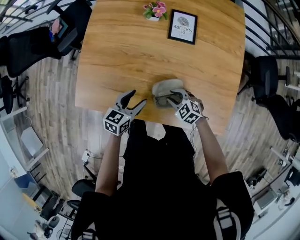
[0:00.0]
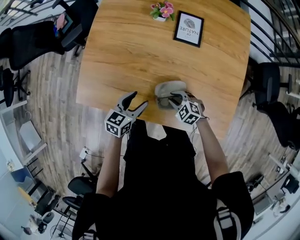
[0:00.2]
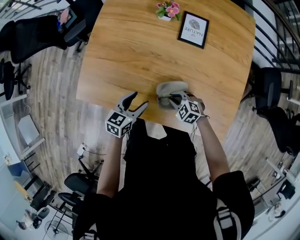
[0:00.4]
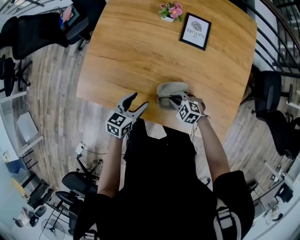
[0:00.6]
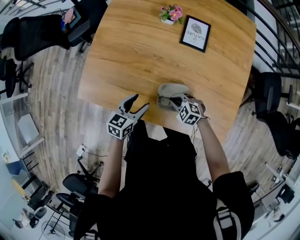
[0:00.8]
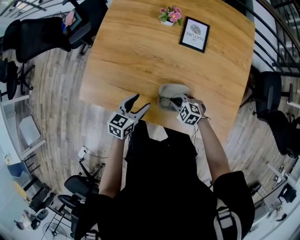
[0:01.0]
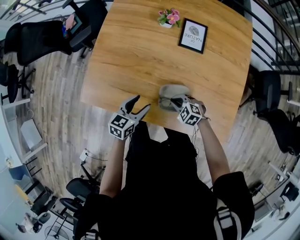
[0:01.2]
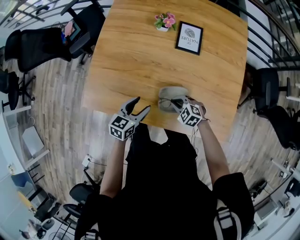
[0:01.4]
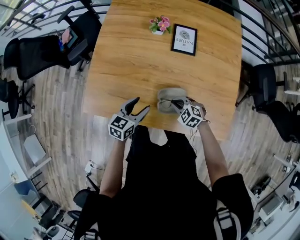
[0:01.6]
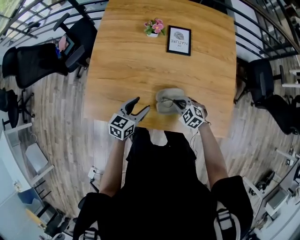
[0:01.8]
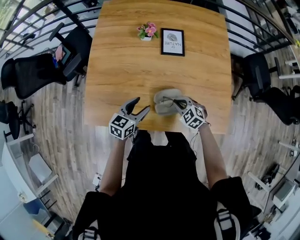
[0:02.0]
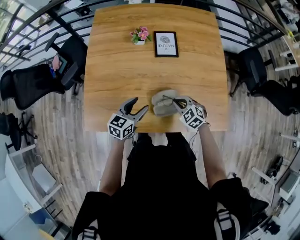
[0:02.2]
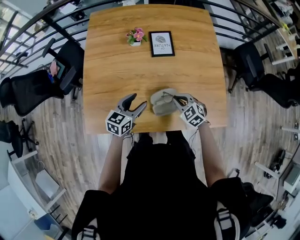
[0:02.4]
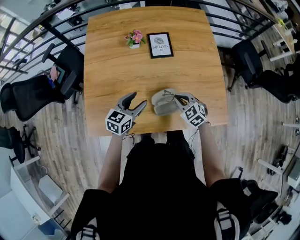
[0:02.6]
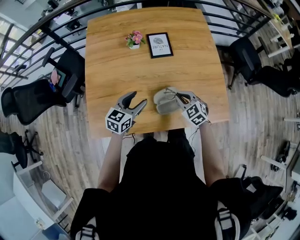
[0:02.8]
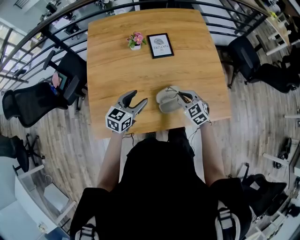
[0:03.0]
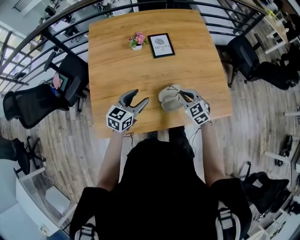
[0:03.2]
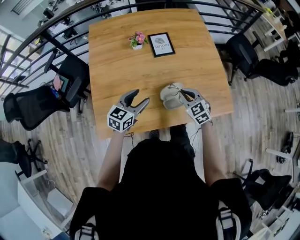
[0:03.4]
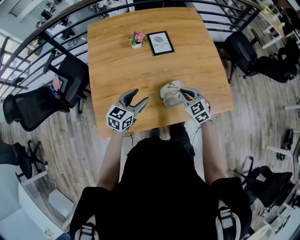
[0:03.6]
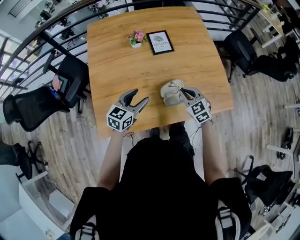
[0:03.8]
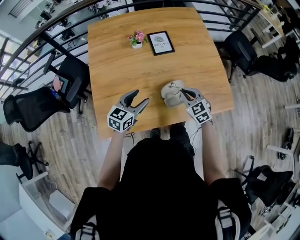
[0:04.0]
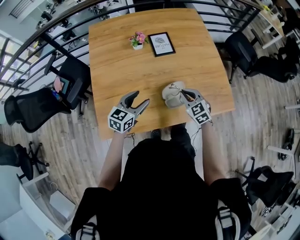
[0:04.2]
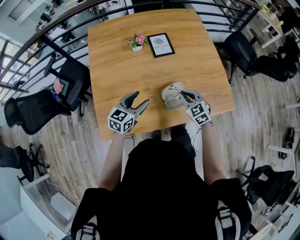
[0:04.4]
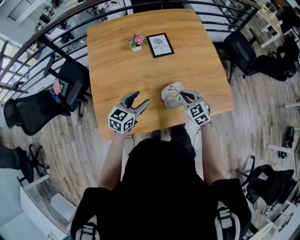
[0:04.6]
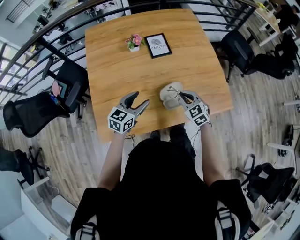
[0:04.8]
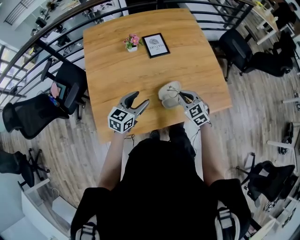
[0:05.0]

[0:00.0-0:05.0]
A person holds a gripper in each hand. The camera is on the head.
0.0 to 1.6 s: The right gripper closes.
1.6 to 3.4 s: The right gripper is displaced upward by approximately 15 cm, and turns by some 50 degrees. The left gripper is displaced upward by some 5 cm, and turns by about 30 degrees.
3.4 to 5.0 s: There are only small adjustments of the grippers.

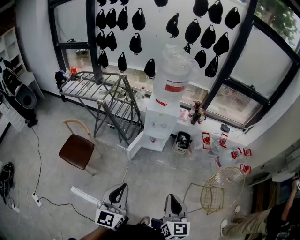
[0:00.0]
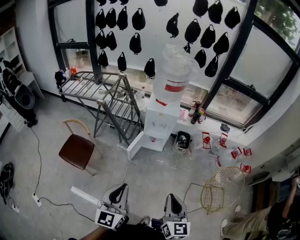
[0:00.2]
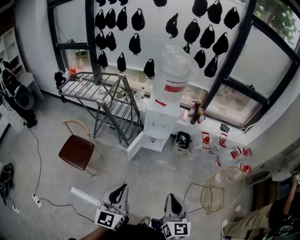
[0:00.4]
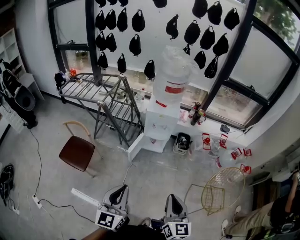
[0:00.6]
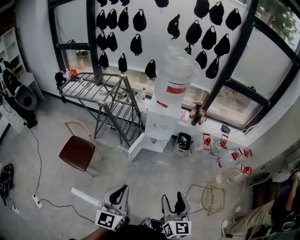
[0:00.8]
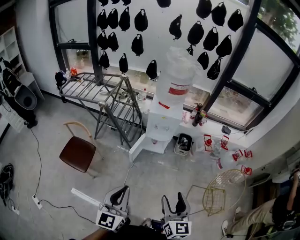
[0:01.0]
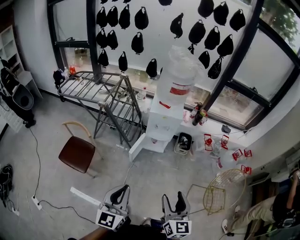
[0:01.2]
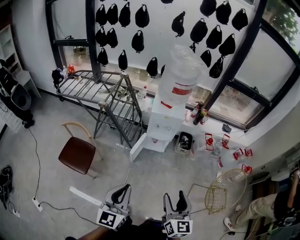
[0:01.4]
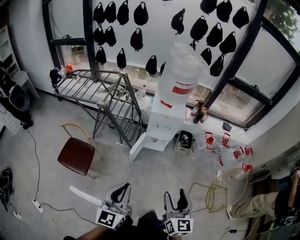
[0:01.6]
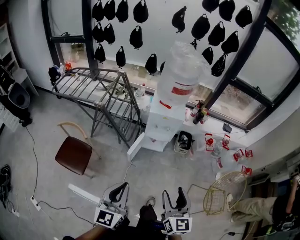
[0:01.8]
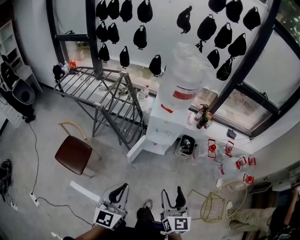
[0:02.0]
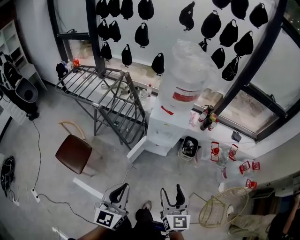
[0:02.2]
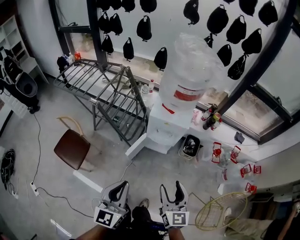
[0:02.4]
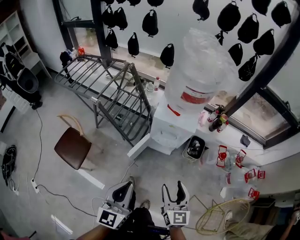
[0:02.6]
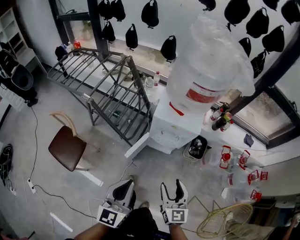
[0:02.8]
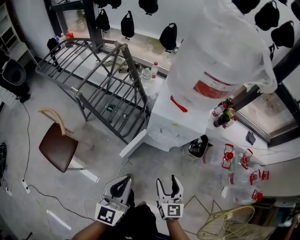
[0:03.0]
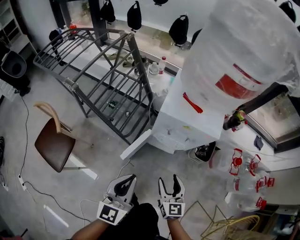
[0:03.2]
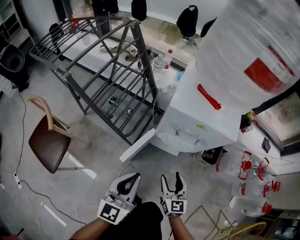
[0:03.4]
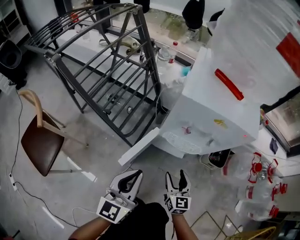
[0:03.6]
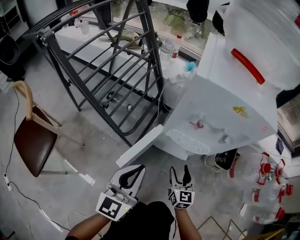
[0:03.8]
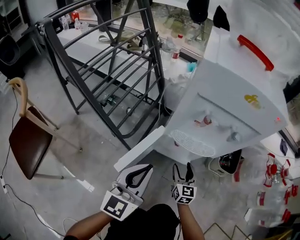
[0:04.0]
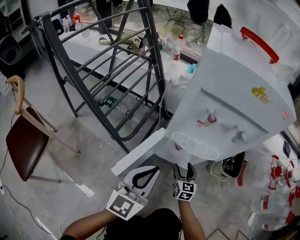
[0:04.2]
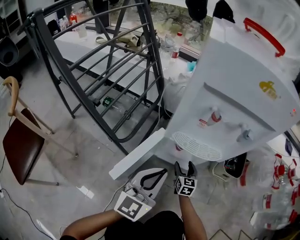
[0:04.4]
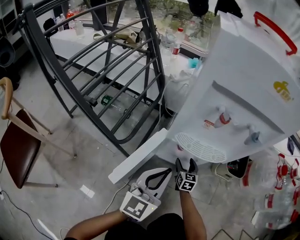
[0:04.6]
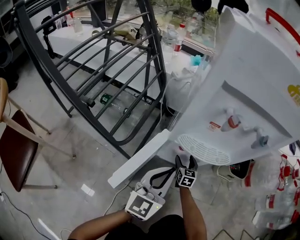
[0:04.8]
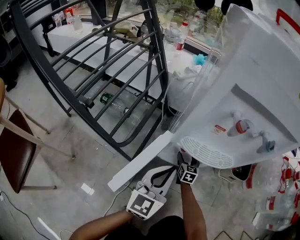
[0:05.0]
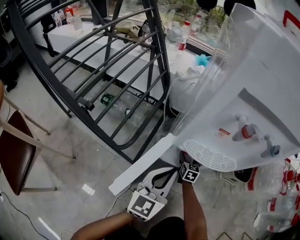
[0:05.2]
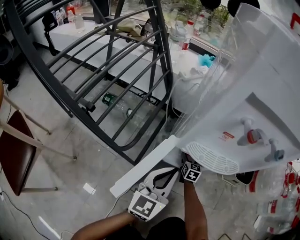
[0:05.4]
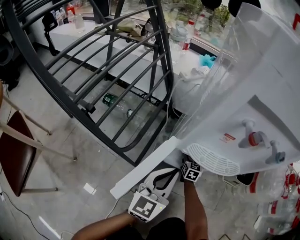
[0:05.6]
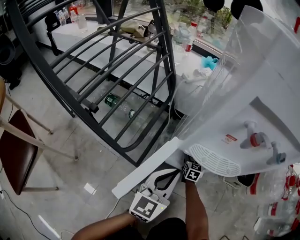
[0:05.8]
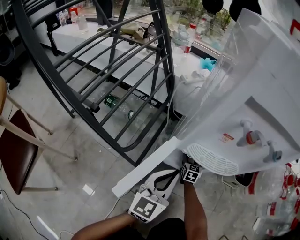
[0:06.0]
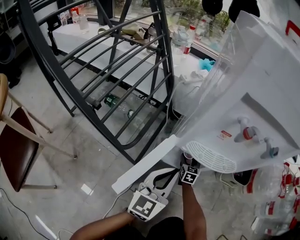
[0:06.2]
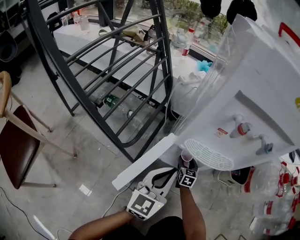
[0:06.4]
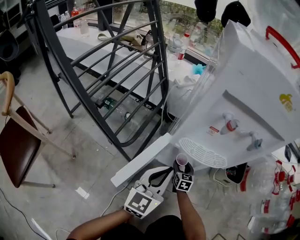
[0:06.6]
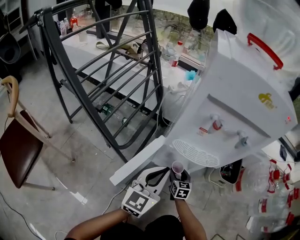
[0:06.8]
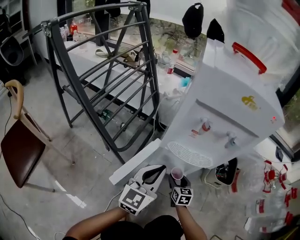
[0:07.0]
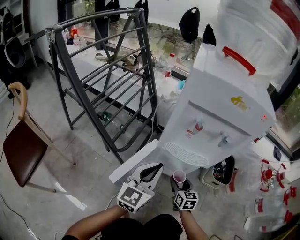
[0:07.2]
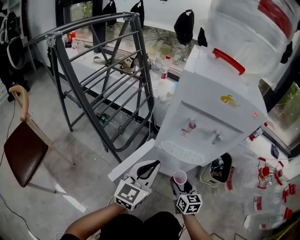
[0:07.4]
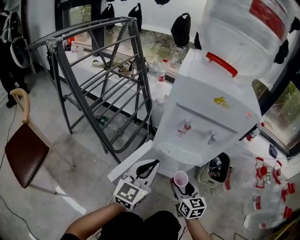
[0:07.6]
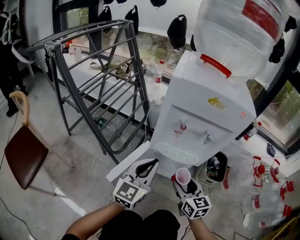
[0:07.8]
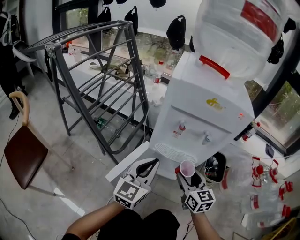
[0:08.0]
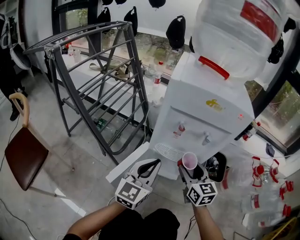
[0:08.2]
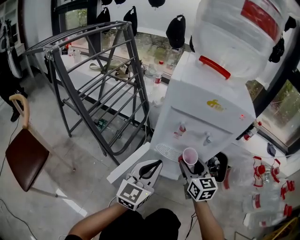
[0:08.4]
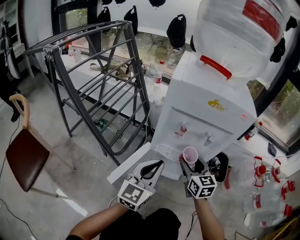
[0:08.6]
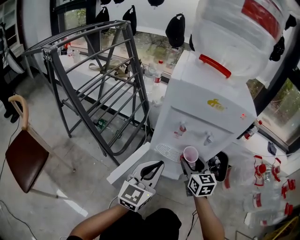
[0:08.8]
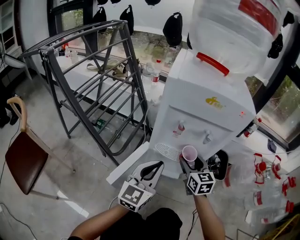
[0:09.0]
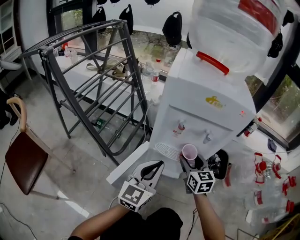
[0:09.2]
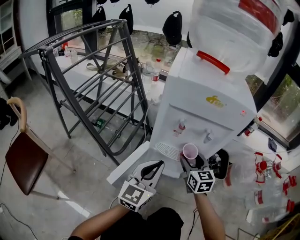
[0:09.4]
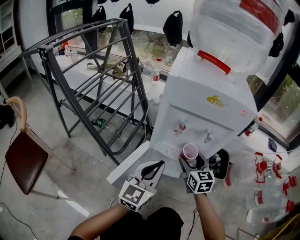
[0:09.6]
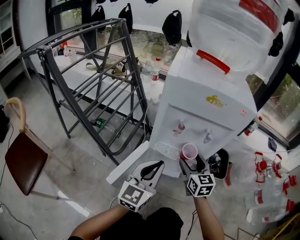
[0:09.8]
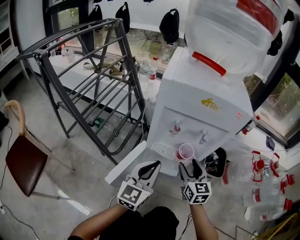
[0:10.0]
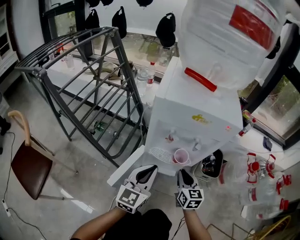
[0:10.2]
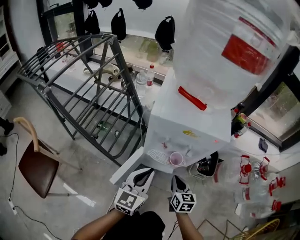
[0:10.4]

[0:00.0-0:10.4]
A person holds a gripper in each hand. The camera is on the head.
0.0 to 1.4 s: The left gripper goes some 5 cm to the left. The right gripper moves to the left and forward, approximately 10 cm, and opens its fingers.
1.4 to 3.0 s: Both grippers travel together forward and downward, some 40 cm.
3.0 to 4.4 s: The right gripper moves downward and forward, roughly 70 cm, while the left gripper travels downward by roughly 40 cm.
4.4 to 6.0 s: The left gripper shifts approximately 10 cm downward and forward; the right gripper heads forward and downward, covering about 15 cm.
6.0 to 7.4 s: The right gripper is displaced upward and backward by about 30 cm. The left gripper moves upward, approximately 15 cm.
7.4 to 9.0 s: The right gripper shifts about 15 cm upward and forward.
9.0 to 10.4 s: The left gripper heads upward, covering approximately 10 cm. The right gripper heads backward, covering some 10 cm, and closes its fingers.

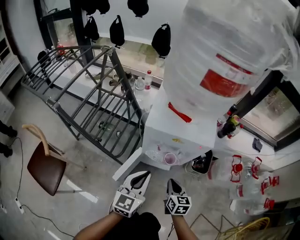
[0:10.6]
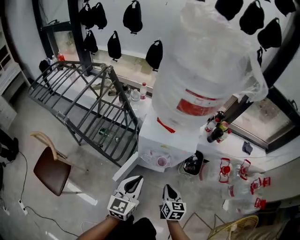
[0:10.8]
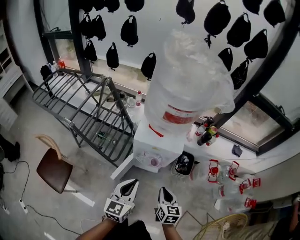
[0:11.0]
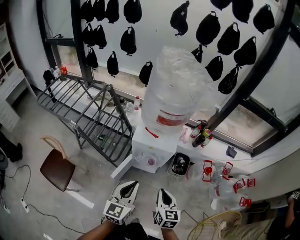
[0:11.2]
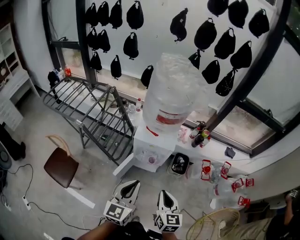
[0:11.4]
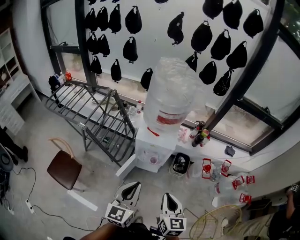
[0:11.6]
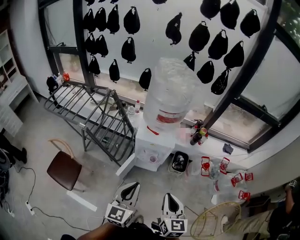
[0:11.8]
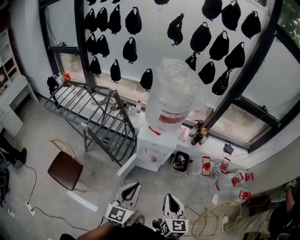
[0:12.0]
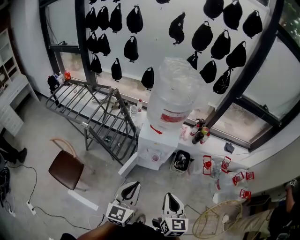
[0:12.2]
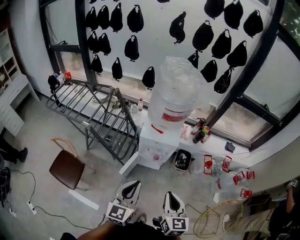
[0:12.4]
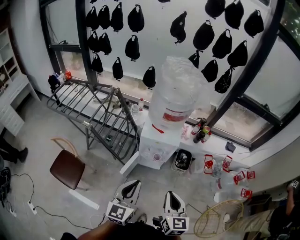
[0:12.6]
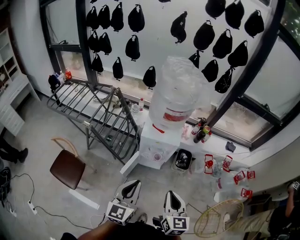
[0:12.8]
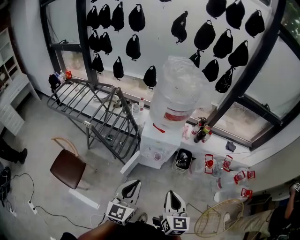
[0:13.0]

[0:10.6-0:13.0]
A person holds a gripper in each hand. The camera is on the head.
10.6 to 11.8 s: Both grippers move upward and backward, approximately 50 cm.
11.8 to 13.0 s: The grippers move only a little.

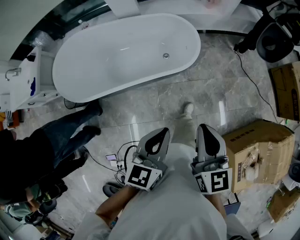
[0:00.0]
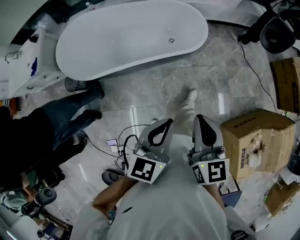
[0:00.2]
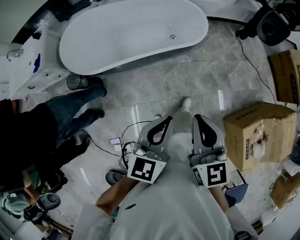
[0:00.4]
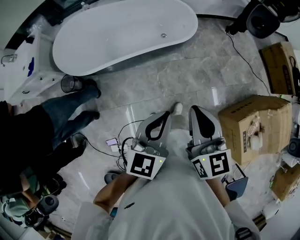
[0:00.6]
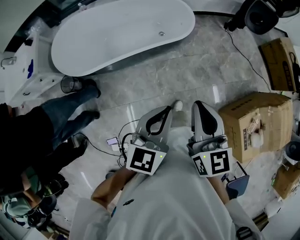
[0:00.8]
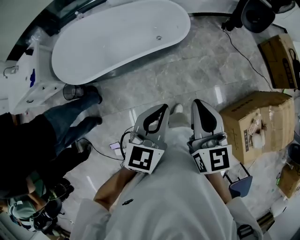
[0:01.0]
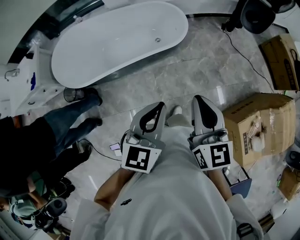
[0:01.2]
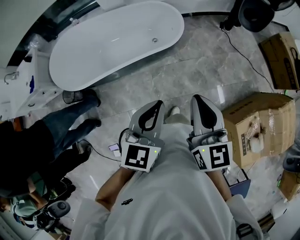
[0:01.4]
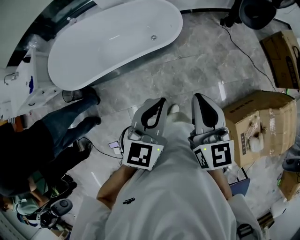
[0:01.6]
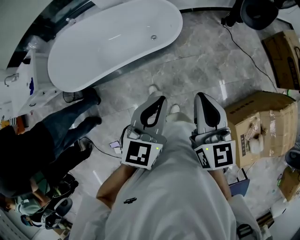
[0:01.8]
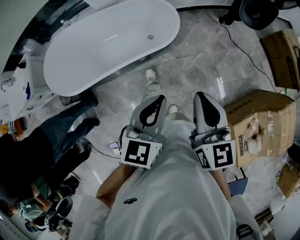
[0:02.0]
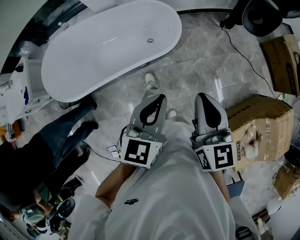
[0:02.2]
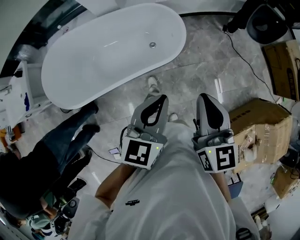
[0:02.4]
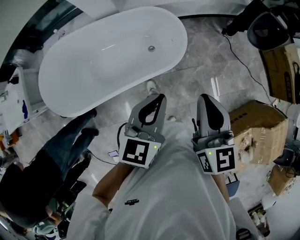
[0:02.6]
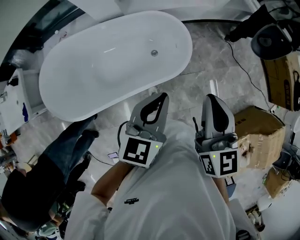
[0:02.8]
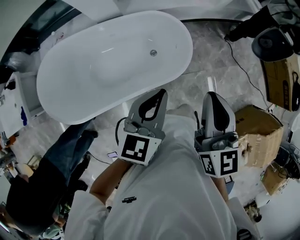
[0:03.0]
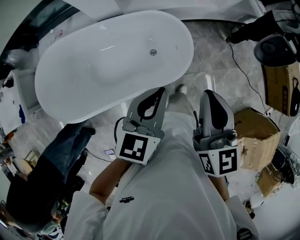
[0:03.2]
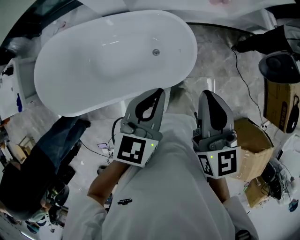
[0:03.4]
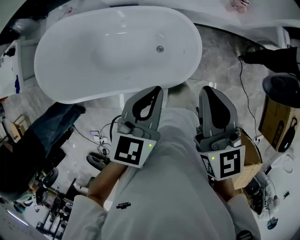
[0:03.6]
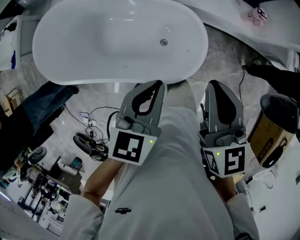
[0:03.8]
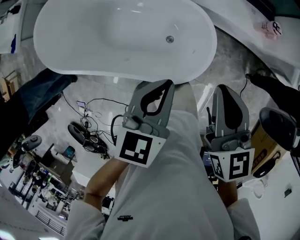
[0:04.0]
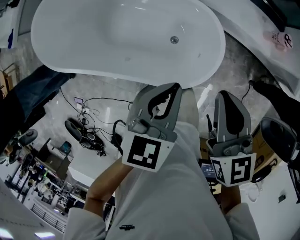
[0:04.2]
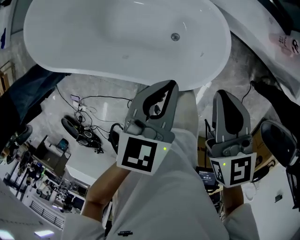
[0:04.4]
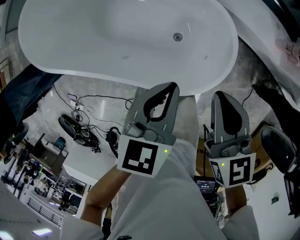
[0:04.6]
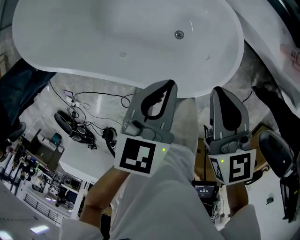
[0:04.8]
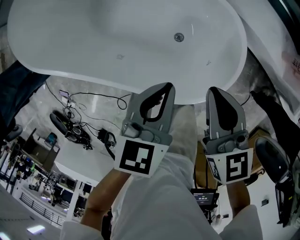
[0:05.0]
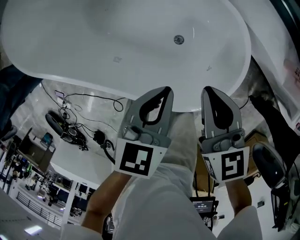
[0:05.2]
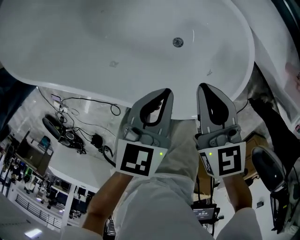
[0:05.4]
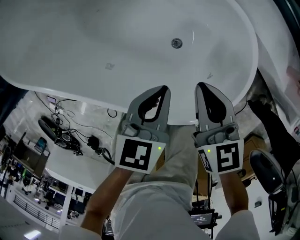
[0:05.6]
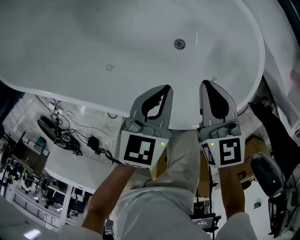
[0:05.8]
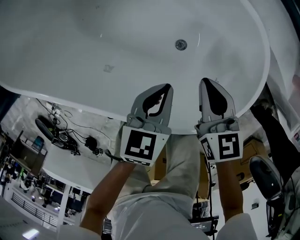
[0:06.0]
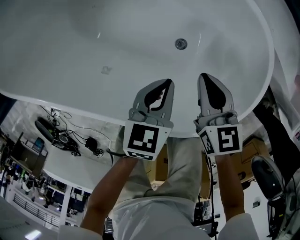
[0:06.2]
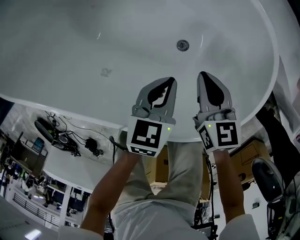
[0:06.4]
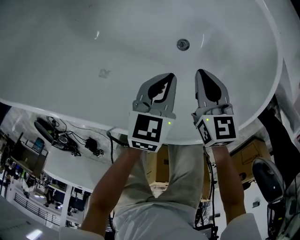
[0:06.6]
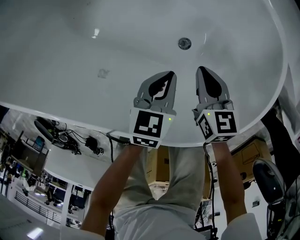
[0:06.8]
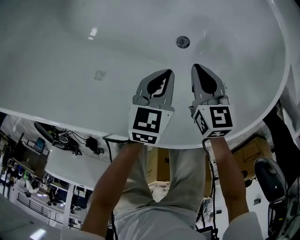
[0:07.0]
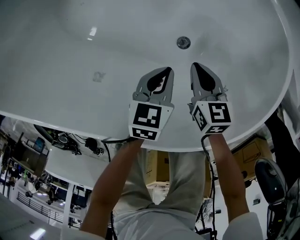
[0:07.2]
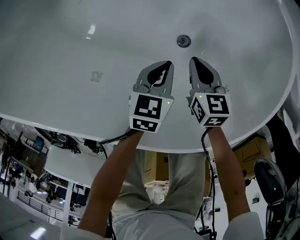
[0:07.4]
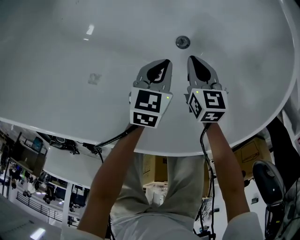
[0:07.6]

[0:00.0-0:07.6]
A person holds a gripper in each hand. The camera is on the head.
0.0 to 1.6 s: The left gripper is displaced to the right and upward by about 10 cm, and travels backward and back again, about 15 cm each way; the right gripper moves backward and to the right, approximately 10 cm.
1.6 to 3.0 s: The two grippers go roughly 35 cm forward.
3.0 to 4.6 s: Both grippers move downward, about 25 cm. The left gripper changes its angle by roughly 40 degrees. Meanwhile the right gripper swivels roughly 50 degrees.
4.6 to 6.0 s: The grippers both shift downward by some 30 cm.
6.0 to 7.6 s: The grippers both shift downward by approximately 25 cm.
